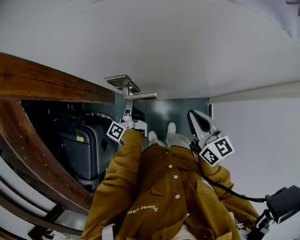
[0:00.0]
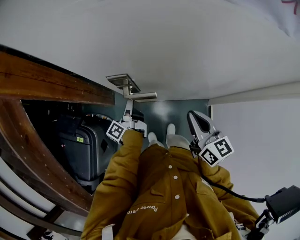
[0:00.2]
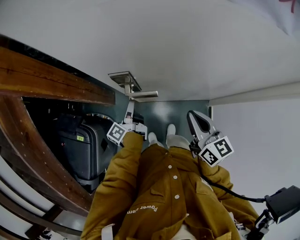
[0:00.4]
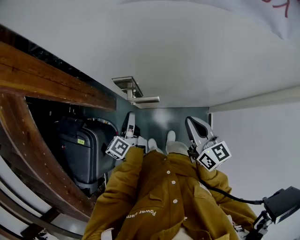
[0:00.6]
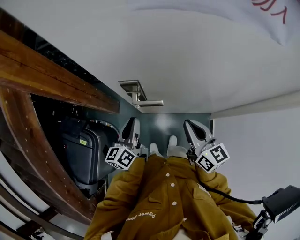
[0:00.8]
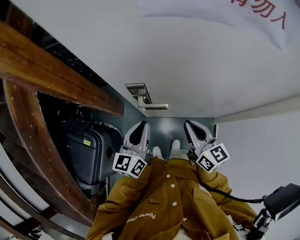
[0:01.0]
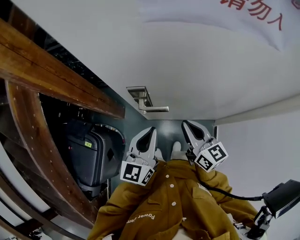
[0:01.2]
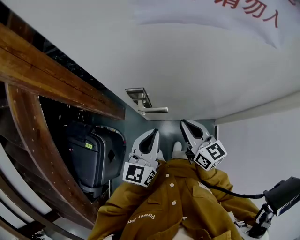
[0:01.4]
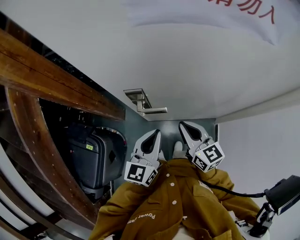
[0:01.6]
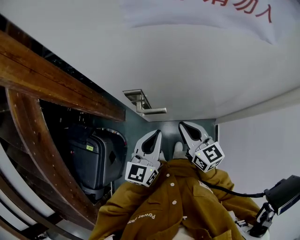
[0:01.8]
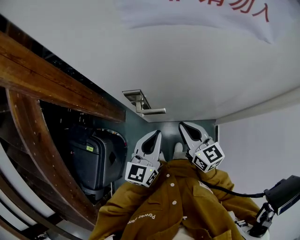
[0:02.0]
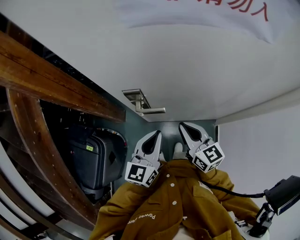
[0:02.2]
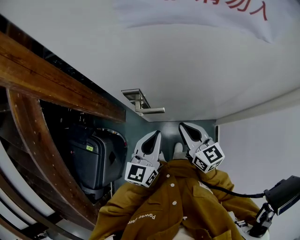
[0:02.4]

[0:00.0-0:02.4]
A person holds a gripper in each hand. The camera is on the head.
0:00.0 to 0:01.2: The right gripper moves to the left, about 5 cm; the left gripper is displaced upward and backward by about 25 cm, and rotates around the line of its fingers by roughly 80 degrees, clockwise from behind.
0:01.2 to 0:02.4: The grippers stay close to where they were, moving slightly.

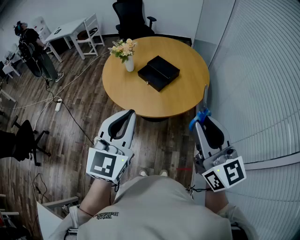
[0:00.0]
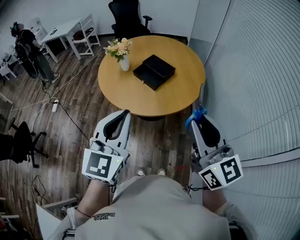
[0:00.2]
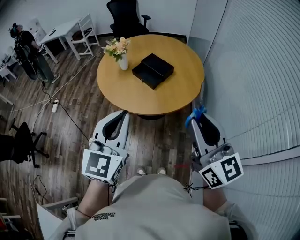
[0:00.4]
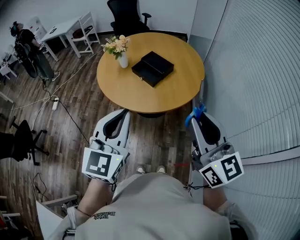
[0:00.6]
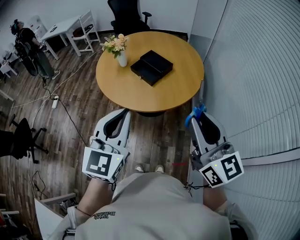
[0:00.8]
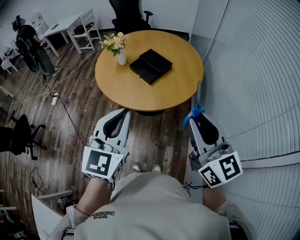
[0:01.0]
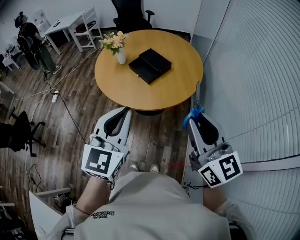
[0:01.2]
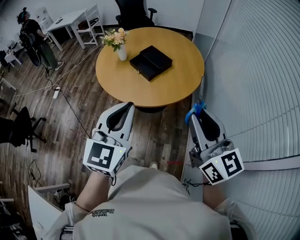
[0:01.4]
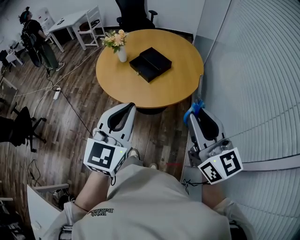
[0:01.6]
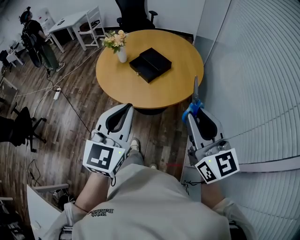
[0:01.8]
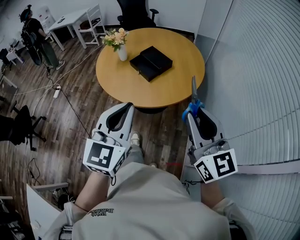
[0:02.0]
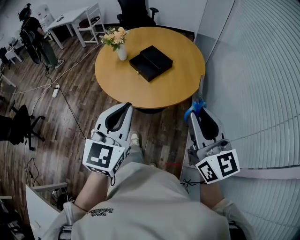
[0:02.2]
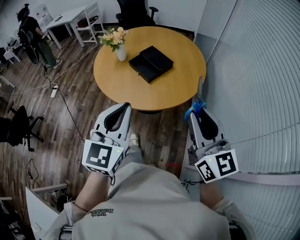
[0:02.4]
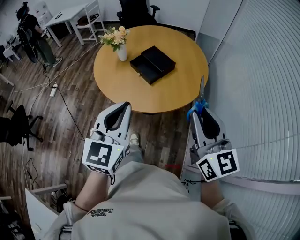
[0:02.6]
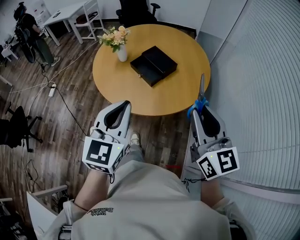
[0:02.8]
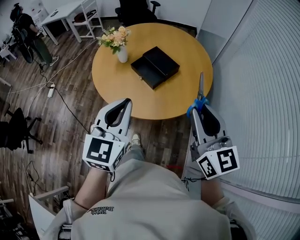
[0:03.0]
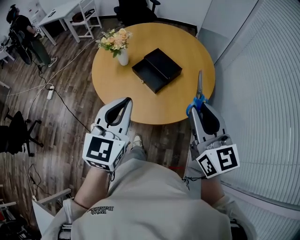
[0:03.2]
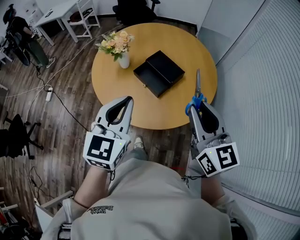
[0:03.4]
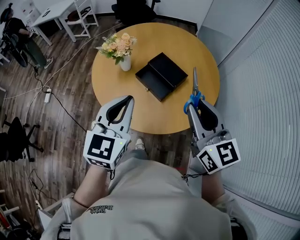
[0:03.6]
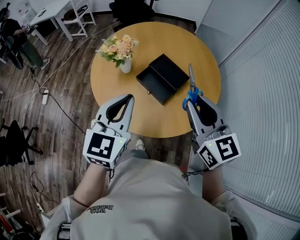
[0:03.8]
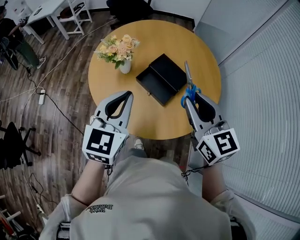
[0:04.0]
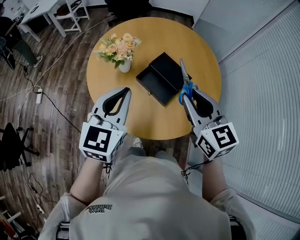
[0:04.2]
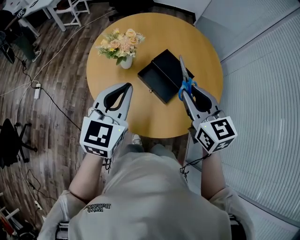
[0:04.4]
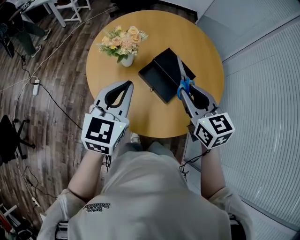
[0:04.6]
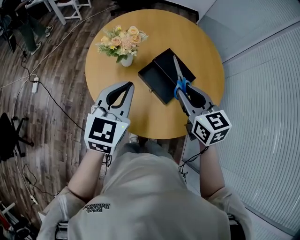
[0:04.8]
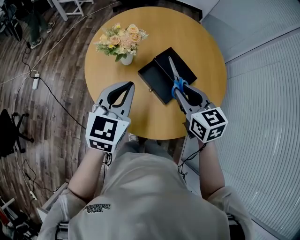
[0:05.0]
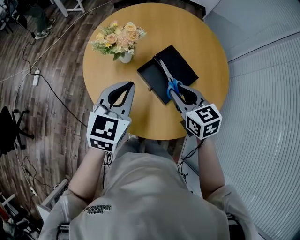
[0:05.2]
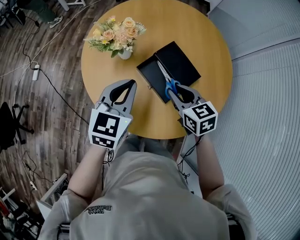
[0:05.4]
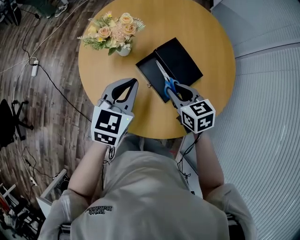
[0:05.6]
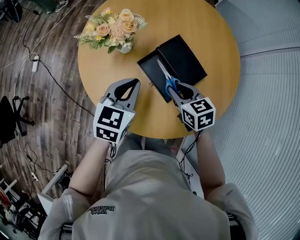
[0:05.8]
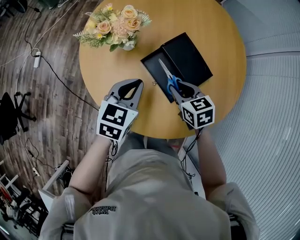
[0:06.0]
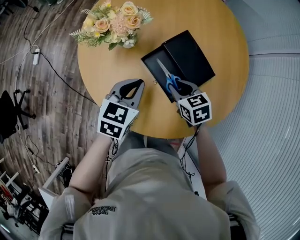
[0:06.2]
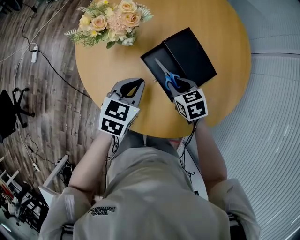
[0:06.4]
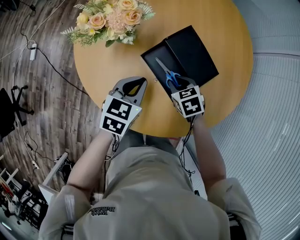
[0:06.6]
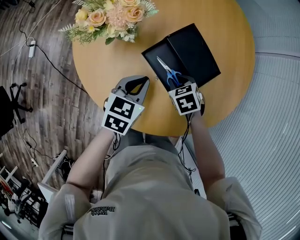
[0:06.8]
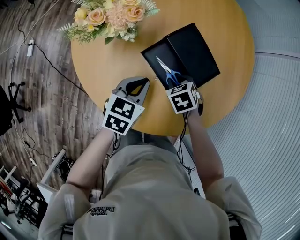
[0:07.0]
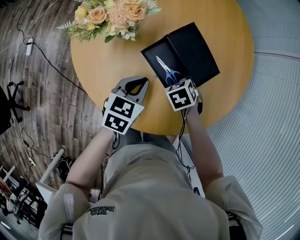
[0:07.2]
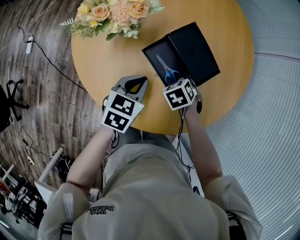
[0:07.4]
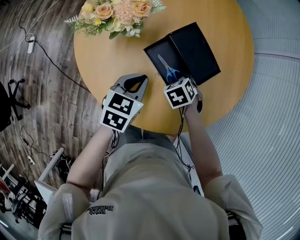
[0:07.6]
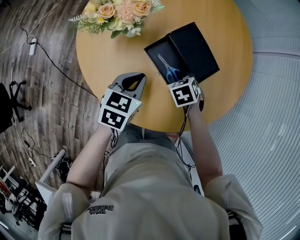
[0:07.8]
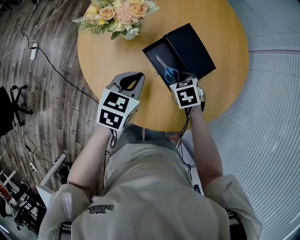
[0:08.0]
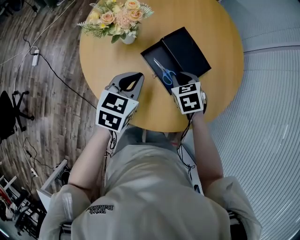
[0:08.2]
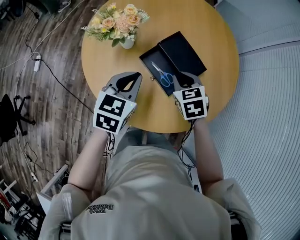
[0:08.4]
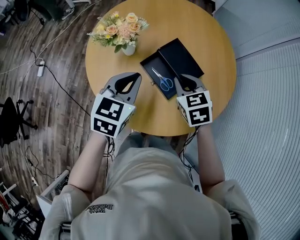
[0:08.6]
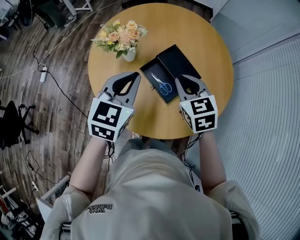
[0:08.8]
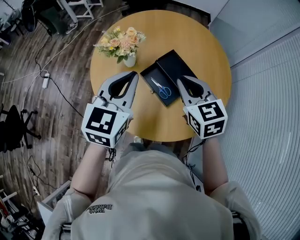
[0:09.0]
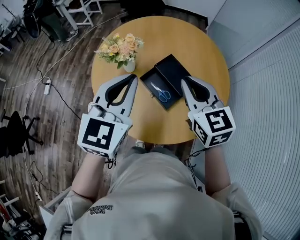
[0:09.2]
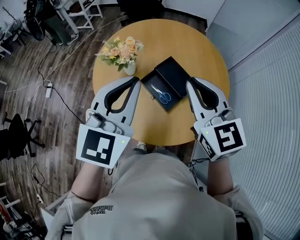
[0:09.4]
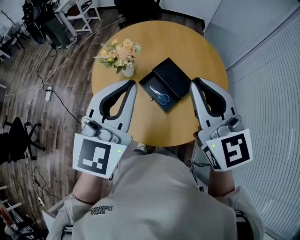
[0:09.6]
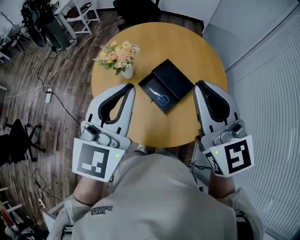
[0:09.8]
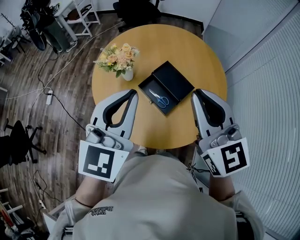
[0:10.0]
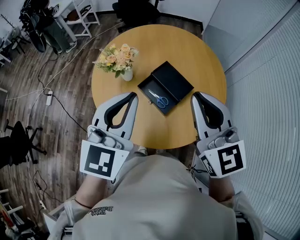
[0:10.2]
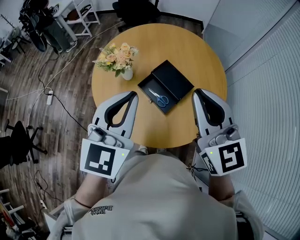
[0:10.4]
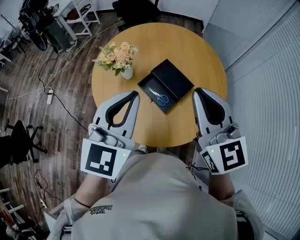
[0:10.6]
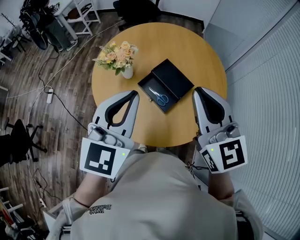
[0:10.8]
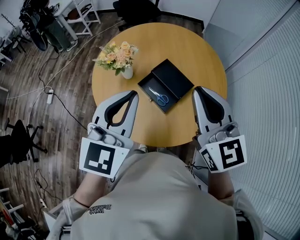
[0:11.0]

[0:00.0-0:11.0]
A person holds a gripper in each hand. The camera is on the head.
0:00.0 to 0:01.6: The two grippers go about 10 cm to the right.
0:01.6 to 0:03.2: The right gripper shifts roughly 20 cm forward, while the left gripper is displaced forward and to the left by approximately 20 cm.
0:03.2 to 0:04.8: The right gripper heads forward, to the left and downward, covering roughly 30 cm, and changes its angle by some 20 degrees. The left gripper shifts about 25 cm forward and to the left.
0:04.8 to 0:06.2: The two grippers go roughly 20 cm downward. The right gripper changes its angle by roughly 30 degrees. Meanwhile the left gripper changes its angle by approximately 30 degrees.
0:06.2 to 0:07.8: The right gripper goes roughly 5 cm downward, and rotates some 20 degrees.
0:07.8 to 0:09.4: Both grippers travel together upward, approximately 40 cm. The right gripper tips its fingers upward by approximately 60 degrees. Meanwhile the left gripper tilts its fingers approximately 30 degrees upward.
0:09.4 to 0:11.0: The right gripper changes place by some 5 cm.

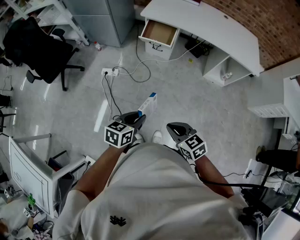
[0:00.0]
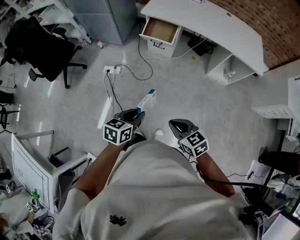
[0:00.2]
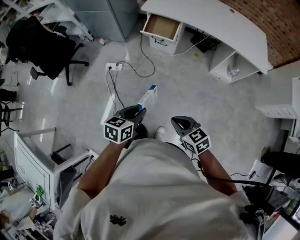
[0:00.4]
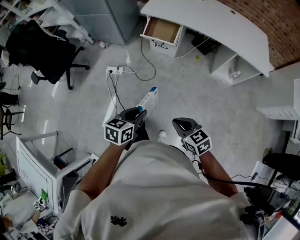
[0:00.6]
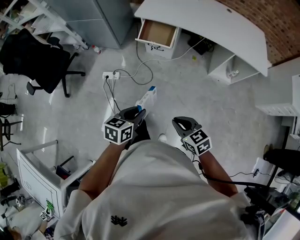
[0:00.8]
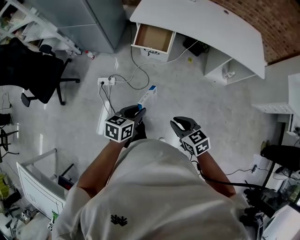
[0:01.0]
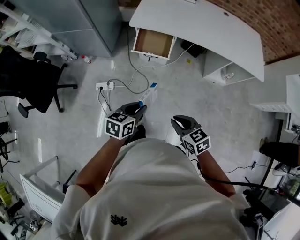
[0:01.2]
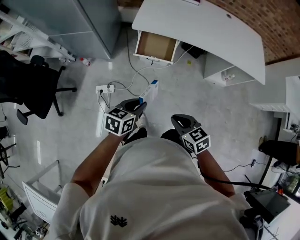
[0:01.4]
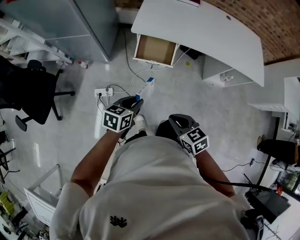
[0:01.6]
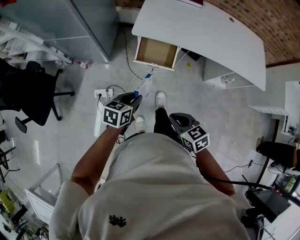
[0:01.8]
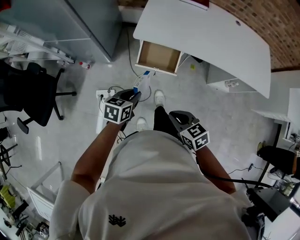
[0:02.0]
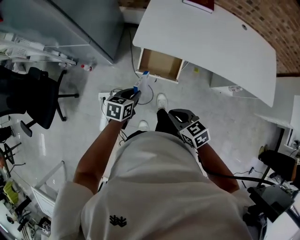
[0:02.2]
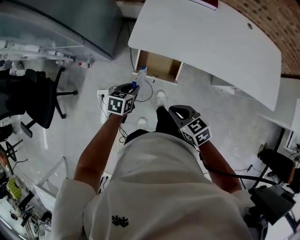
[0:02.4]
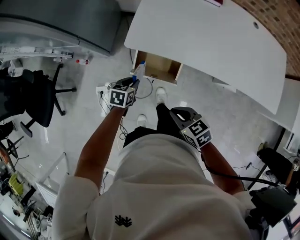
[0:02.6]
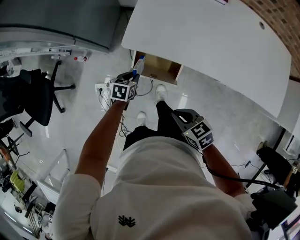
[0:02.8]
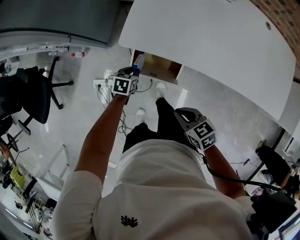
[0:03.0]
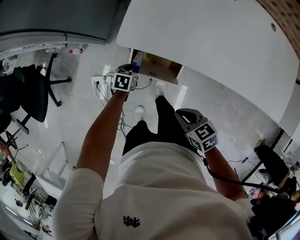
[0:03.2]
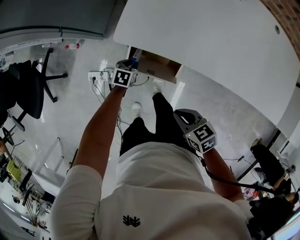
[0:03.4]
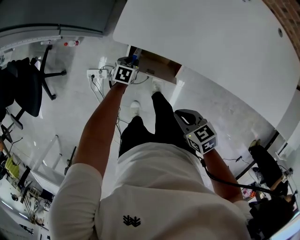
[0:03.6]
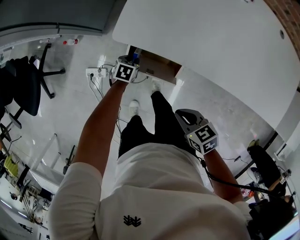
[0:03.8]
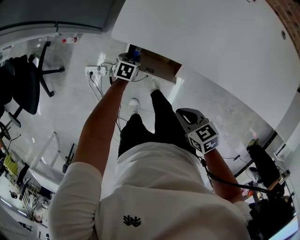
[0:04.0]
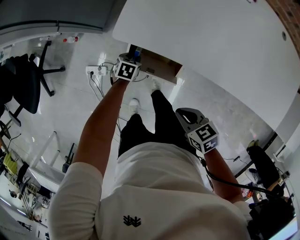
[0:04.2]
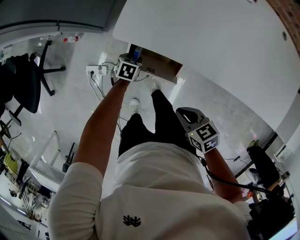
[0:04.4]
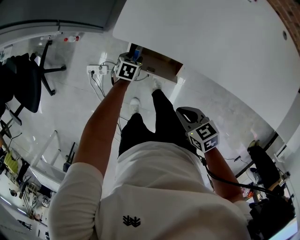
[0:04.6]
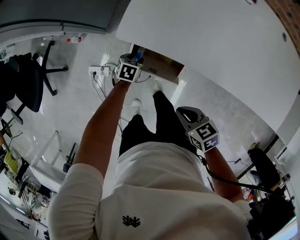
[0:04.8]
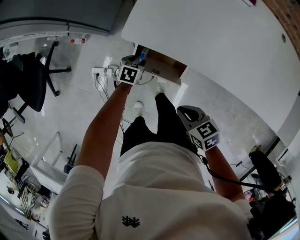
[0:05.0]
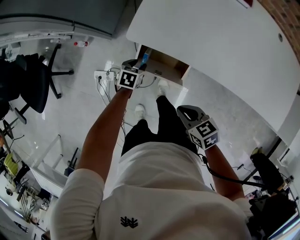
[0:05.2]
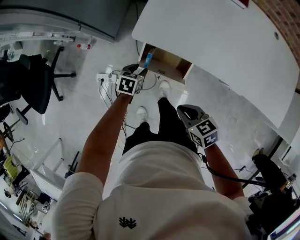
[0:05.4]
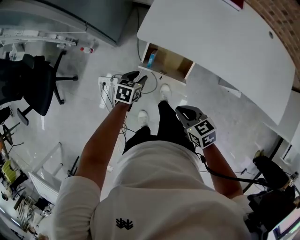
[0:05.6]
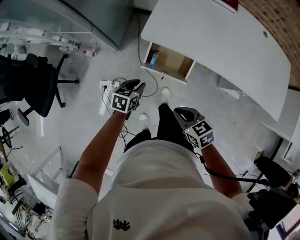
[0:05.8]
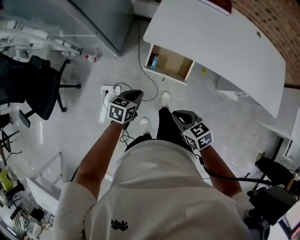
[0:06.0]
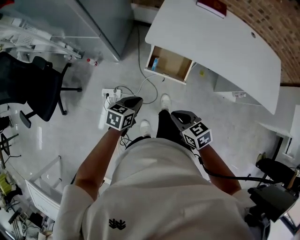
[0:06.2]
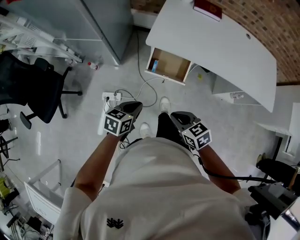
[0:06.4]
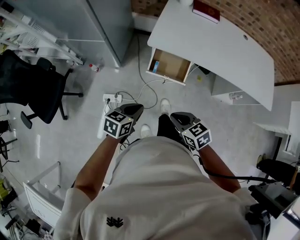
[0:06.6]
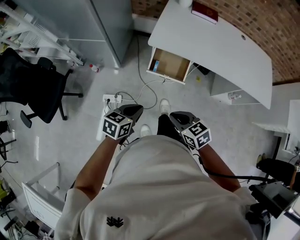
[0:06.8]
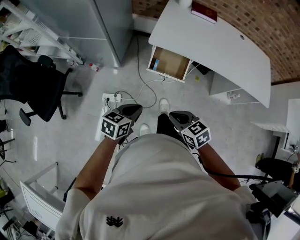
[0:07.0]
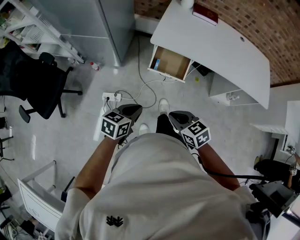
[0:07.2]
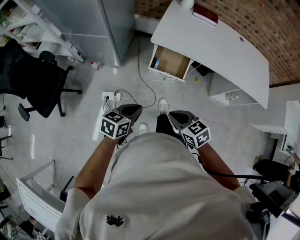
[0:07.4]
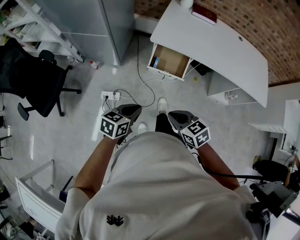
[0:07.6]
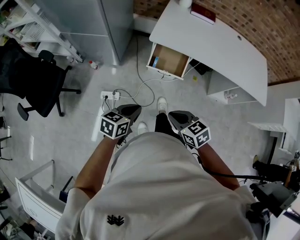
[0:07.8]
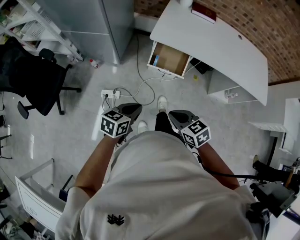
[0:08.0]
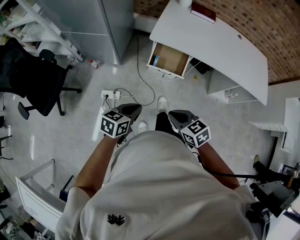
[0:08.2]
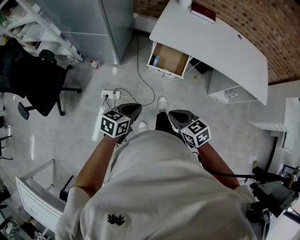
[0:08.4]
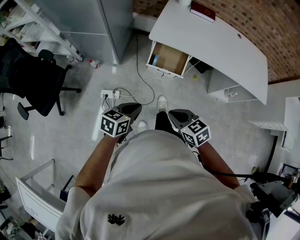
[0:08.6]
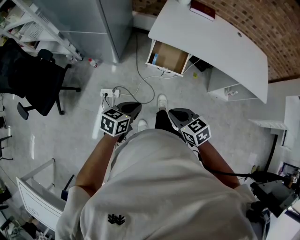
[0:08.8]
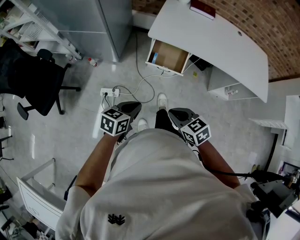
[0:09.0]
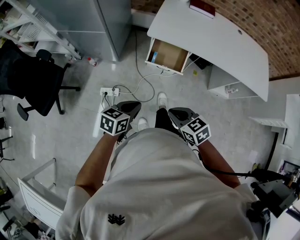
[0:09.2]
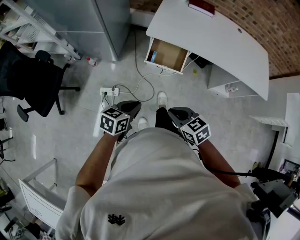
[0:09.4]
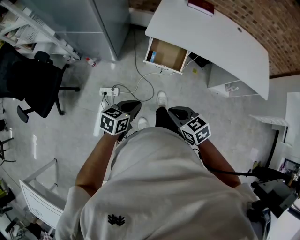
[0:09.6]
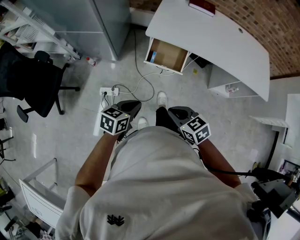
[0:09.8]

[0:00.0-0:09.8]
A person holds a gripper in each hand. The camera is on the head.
0:00.0 to 0:01.4: Both grippers are carried forward, roughly 40 cm.
0:01.4 to 0:02.8: The two grippers travel together, forward, about 50 cm. The left gripper heads downward, covering about 25 cm, and changes its angle by approximately 20 degrees.
0:02.8 to 0:04.2: The right gripper is displaced downward and forward by some 10 cm; the left gripper travels downward and forward by approximately 20 cm.
0:04.2 to 0:05.6: The left gripper travels upward, backward and to the left by about 25 cm. The right gripper is displaced to the left, upward and backward by some 15 cm.
0:05.6 to 0:07.0: The right gripper shifts some 25 cm backward, upward and to the left; the left gripper travels backward and upward by approximately 40 cm, and closes up.
0:07.0 to 0:08.4: The two grippers go approximately 5 cm backward.
0:08.4 to 0:09.8: The grippers make only small movements.
